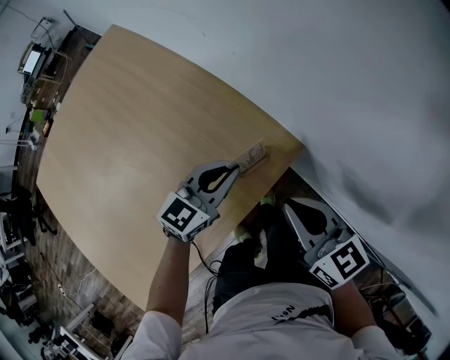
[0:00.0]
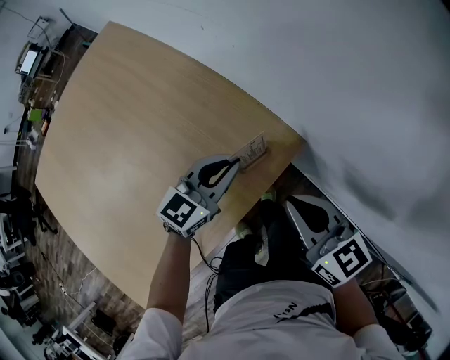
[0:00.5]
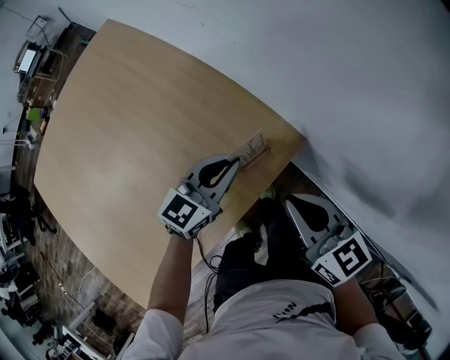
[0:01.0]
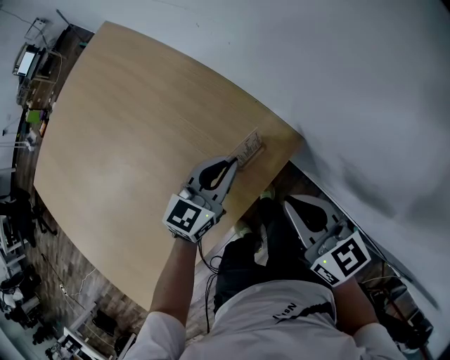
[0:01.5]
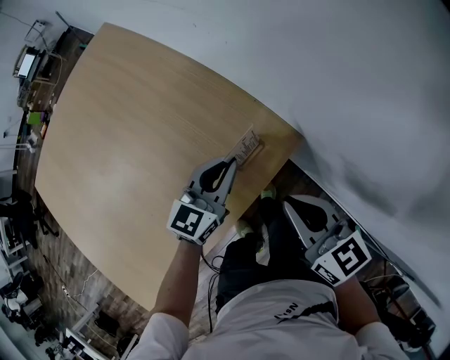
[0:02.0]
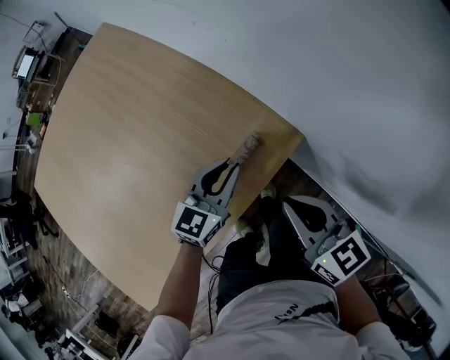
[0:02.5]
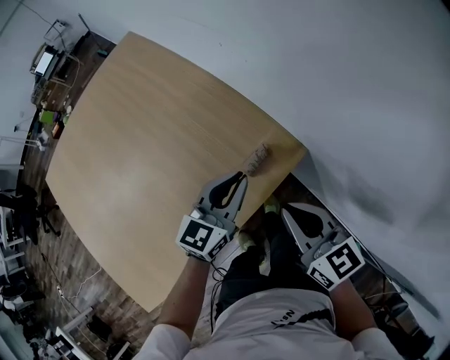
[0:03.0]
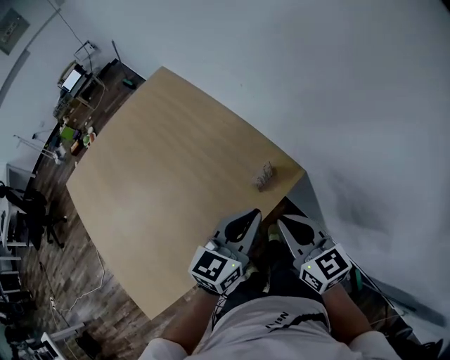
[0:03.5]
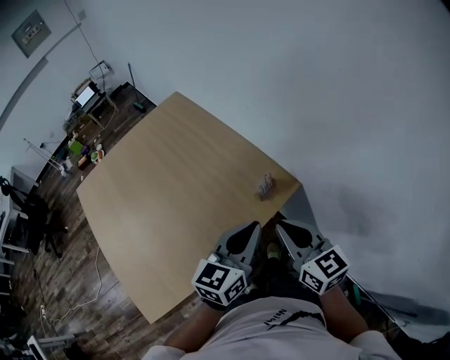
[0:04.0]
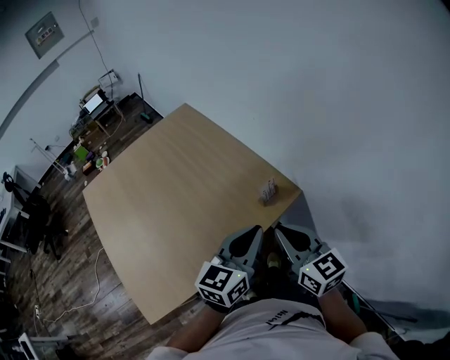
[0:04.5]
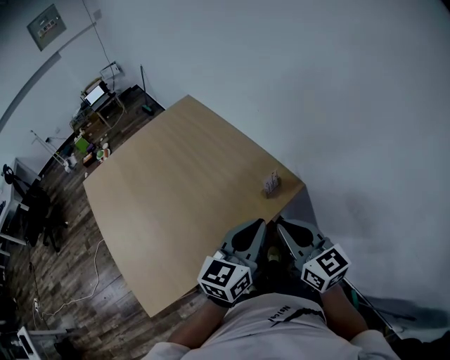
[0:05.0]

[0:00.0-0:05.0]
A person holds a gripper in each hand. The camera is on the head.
0:00.0 to 0:02.5: The grippers move only a little.
0:02.5 to 0:05.0: The left gripper is displaced upward and backward by approximately 35 cm; the right gripper heads upward, backward and to the left, covering some 25 cm.

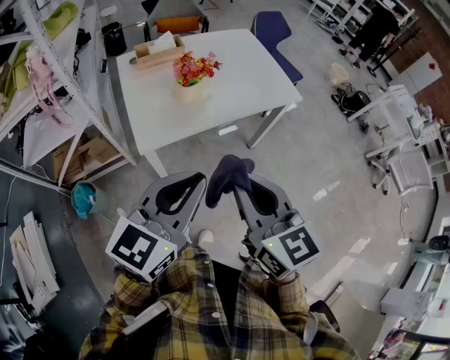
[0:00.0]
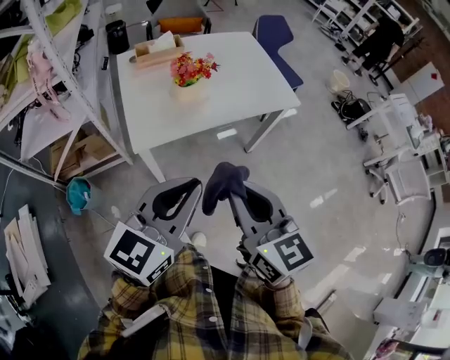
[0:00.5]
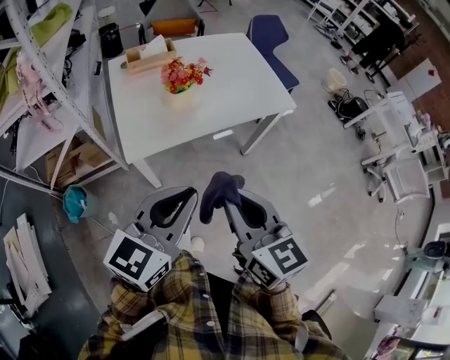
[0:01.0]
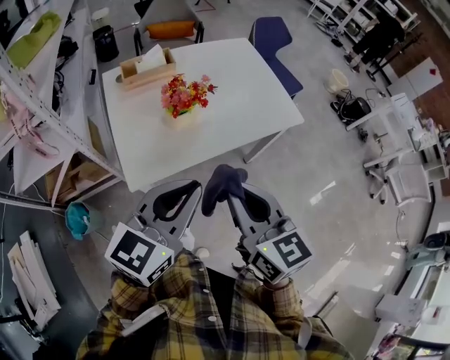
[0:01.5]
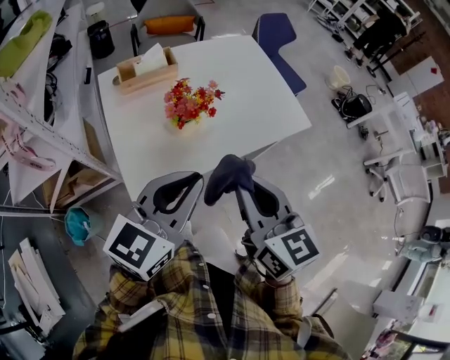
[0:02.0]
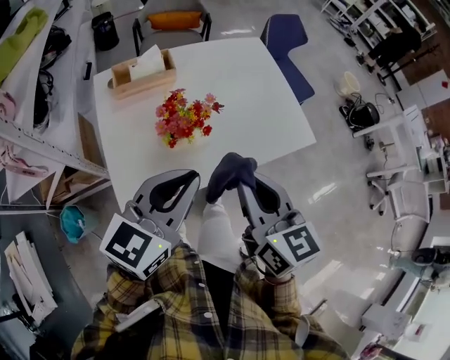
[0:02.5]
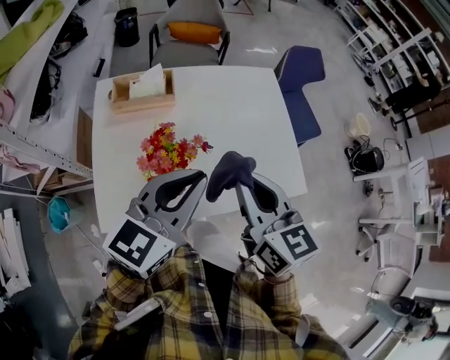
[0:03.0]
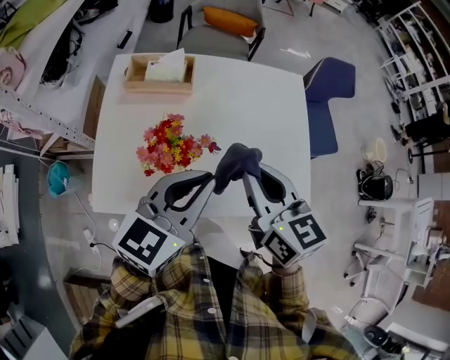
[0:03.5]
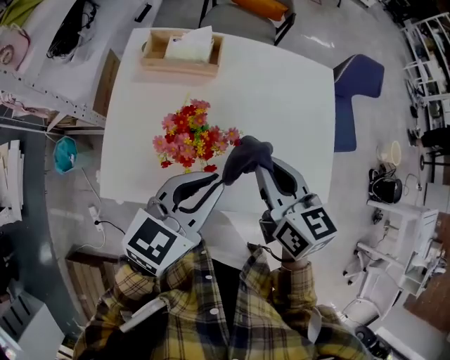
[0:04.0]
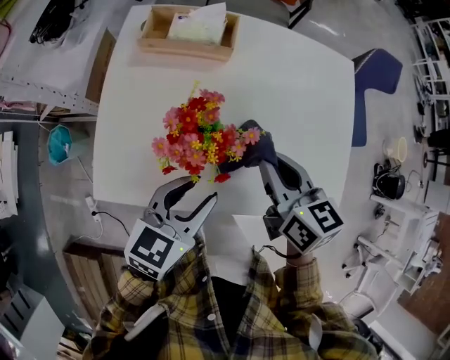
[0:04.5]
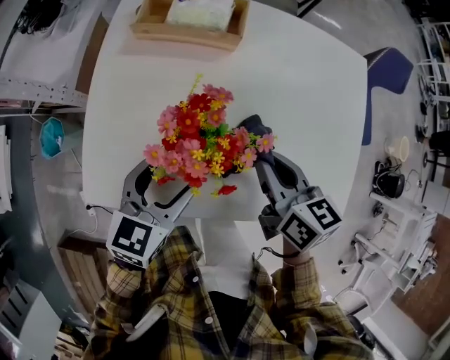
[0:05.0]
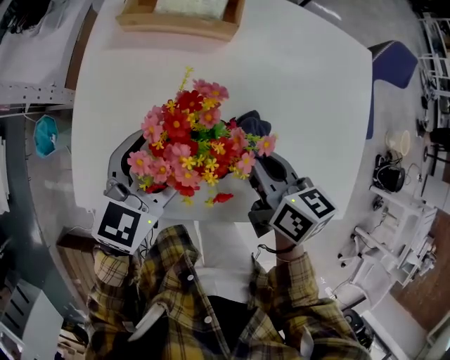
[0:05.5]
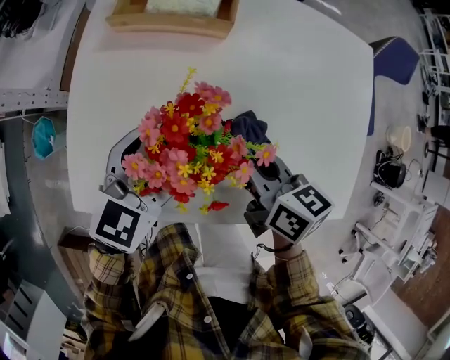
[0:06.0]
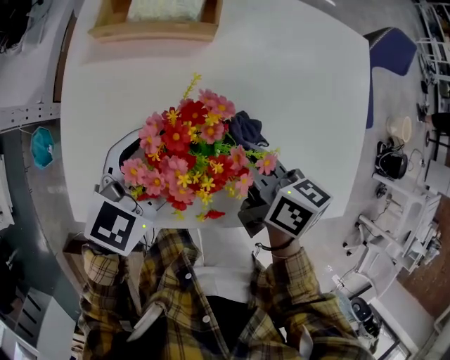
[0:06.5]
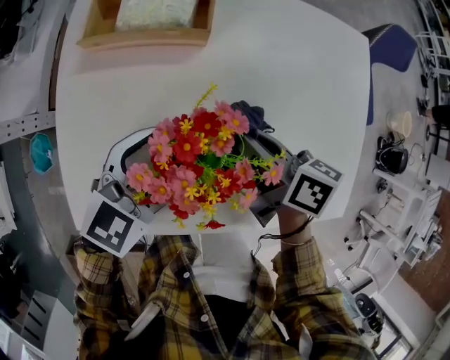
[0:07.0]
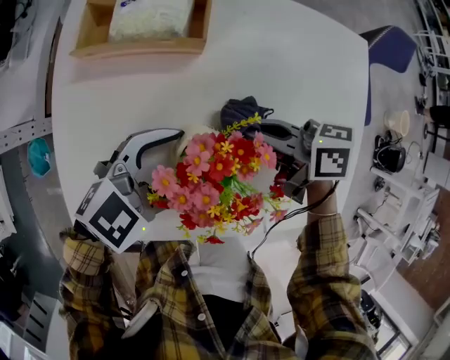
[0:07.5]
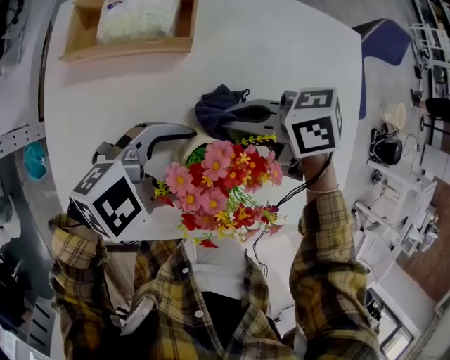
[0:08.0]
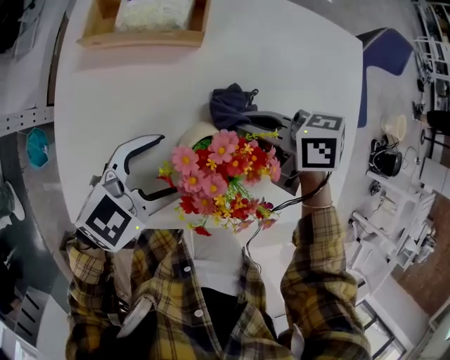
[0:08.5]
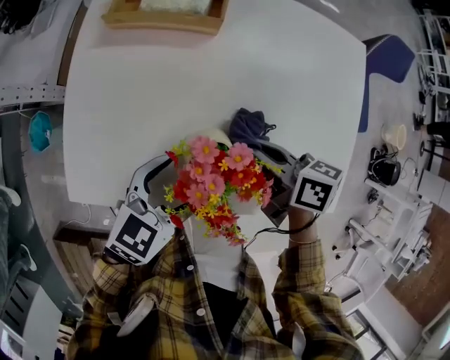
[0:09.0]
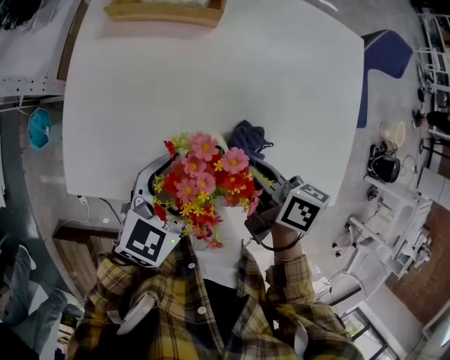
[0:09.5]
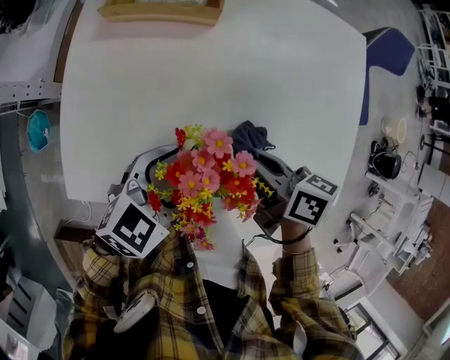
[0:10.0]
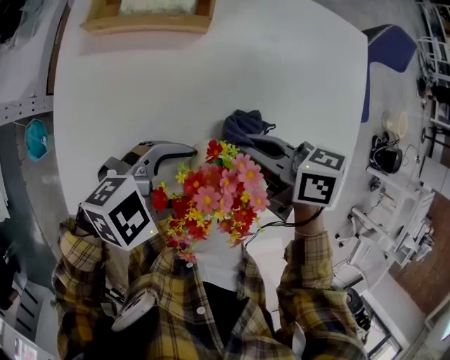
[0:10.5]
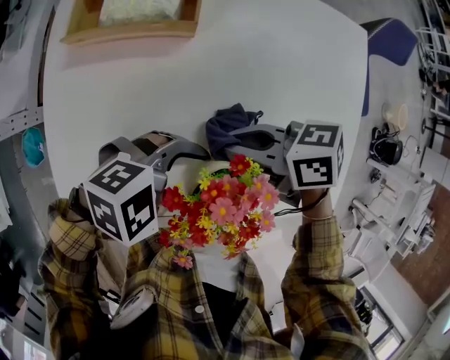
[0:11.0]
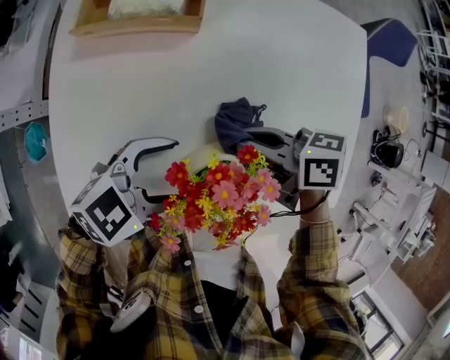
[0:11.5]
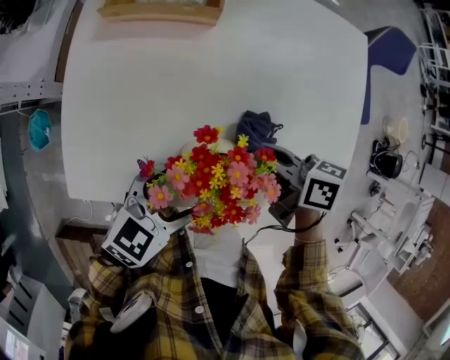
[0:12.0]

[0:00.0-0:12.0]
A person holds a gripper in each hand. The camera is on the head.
0:00.0 to 0:02.0: Both grippers travel together forward, approximately 20 cm.
0:02.0 to 0:04.0: The right gripper changes place by about 30 cm, and rotates approximately 30 degrees. The left gripper ends up approximately 25 cm from where it was, and turns by about 30 degrees.
0:04.0 to 0:06.0: The left gripper moves downward, to the left and forward, roughly 20 cm, and opens its fingers, while the right gripper shifts about 20 cm downward, and changes its angle by approximately 20 degrees.
0:06.0 to 0:08.0: The left gripper shifts by approximately 10 cm, and turns by some 50 degrees. The right gripper shifts by approximately 10 cm, and swivels approximately 40 degrees.
0:08.0 to 0:10.0: The left gripper moves approximately 10 cm, and turns by approximately 30 degrees, while the right gripper shifts by roughly 15 cm, and changes its angle by roughly 30 degrees.

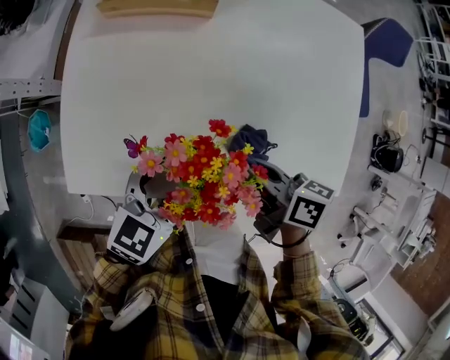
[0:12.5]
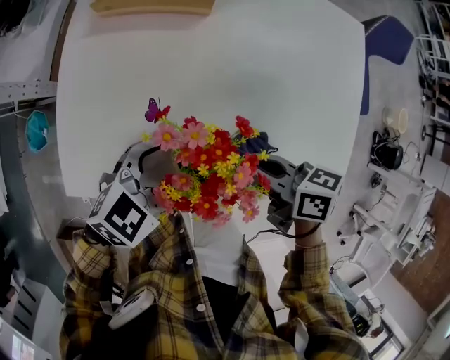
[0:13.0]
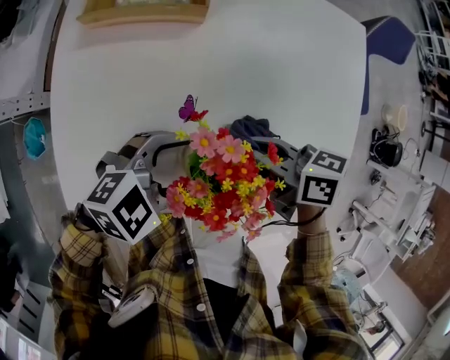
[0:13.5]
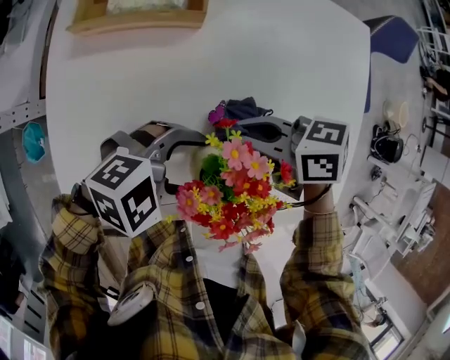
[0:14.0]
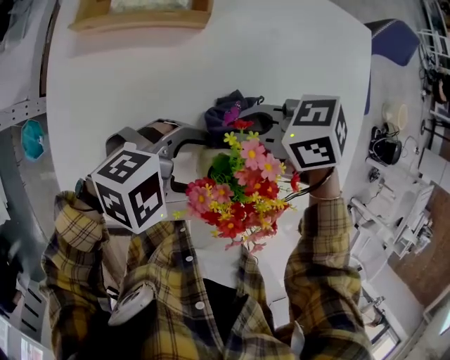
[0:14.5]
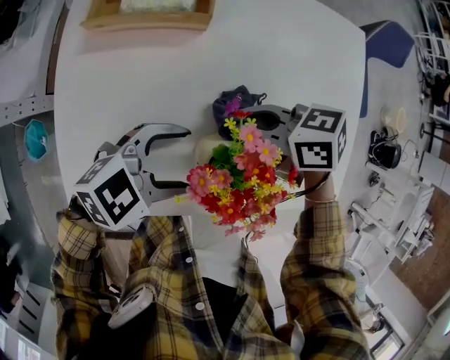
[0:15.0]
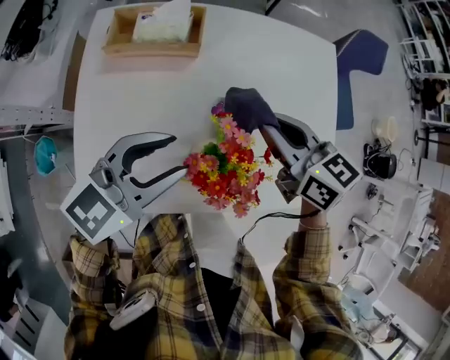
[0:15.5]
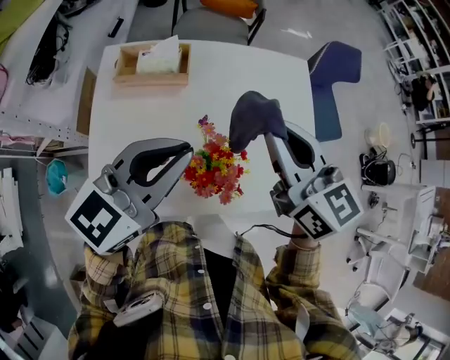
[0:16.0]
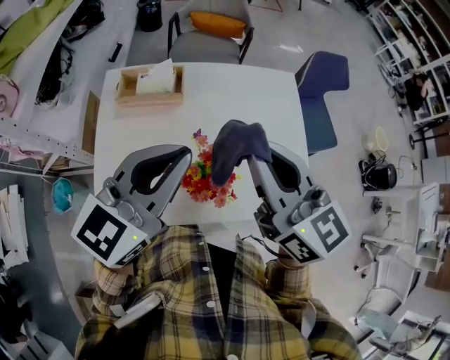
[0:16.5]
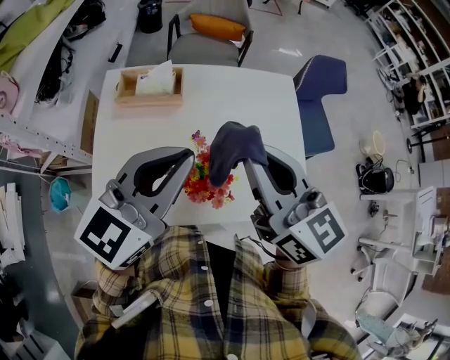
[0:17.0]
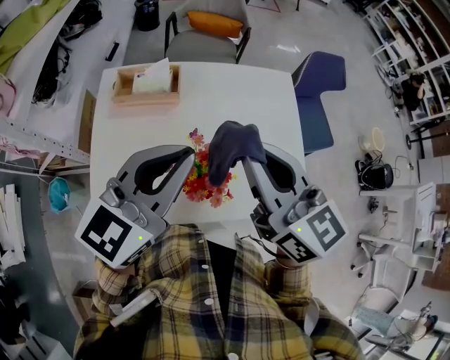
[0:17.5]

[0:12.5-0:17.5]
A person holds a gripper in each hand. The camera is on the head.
0:12.5 to 0:15.0: The left gripper shifts by approximately 5 cm, and rotates some 40 degrees. The right gripper changes place by about 10 cm, and turns by roughly 40 degrees.
0:15.0 to 0:17.5: The grippers both shift upward by some 30 cm. The left gripper swivels roughly 50 degrees, and closes. Meanwhile the right gripper changes its angle by roughly 60 degrees.

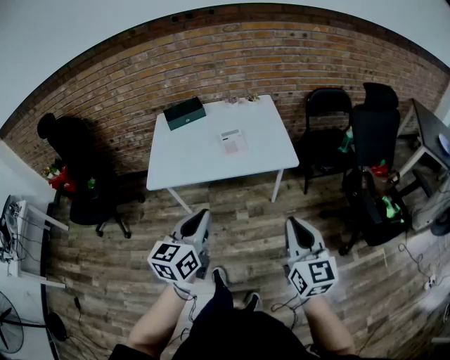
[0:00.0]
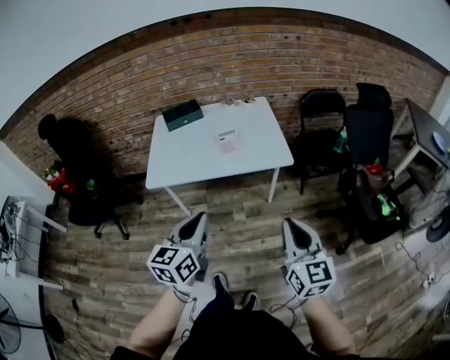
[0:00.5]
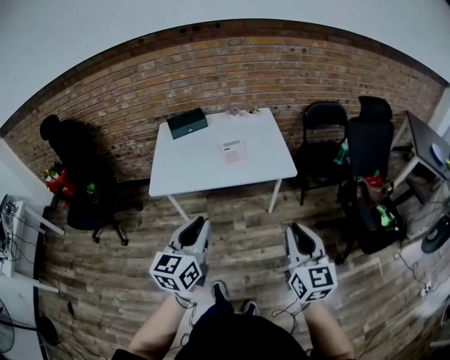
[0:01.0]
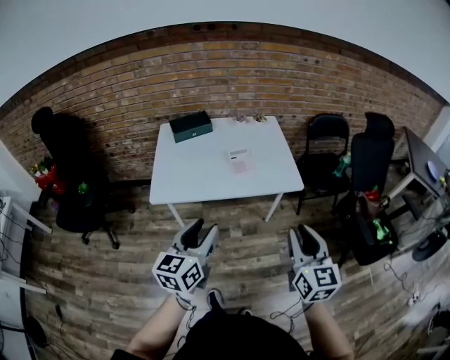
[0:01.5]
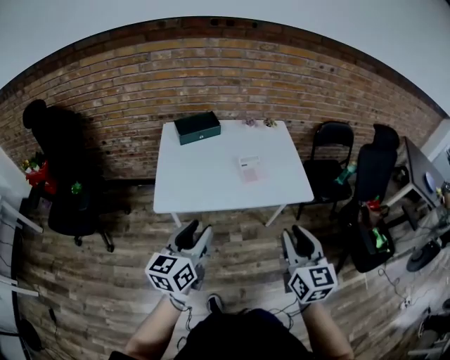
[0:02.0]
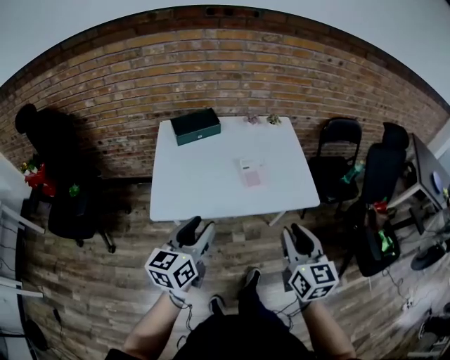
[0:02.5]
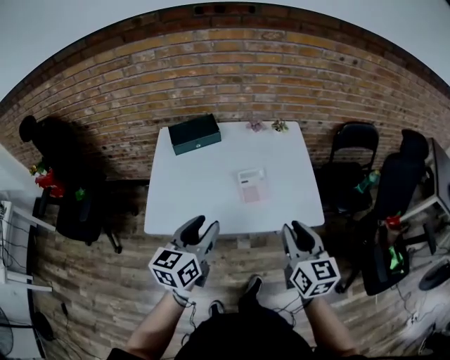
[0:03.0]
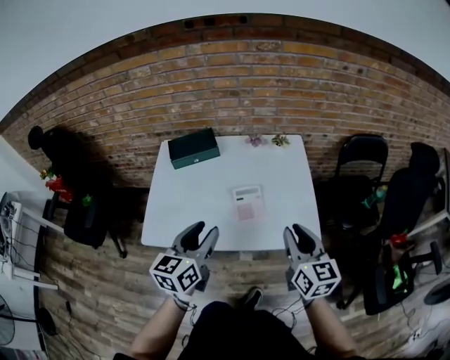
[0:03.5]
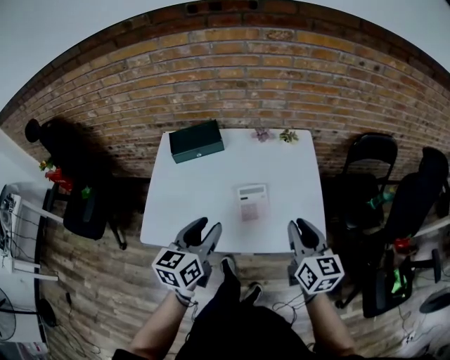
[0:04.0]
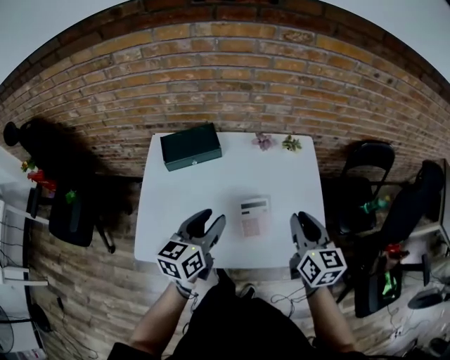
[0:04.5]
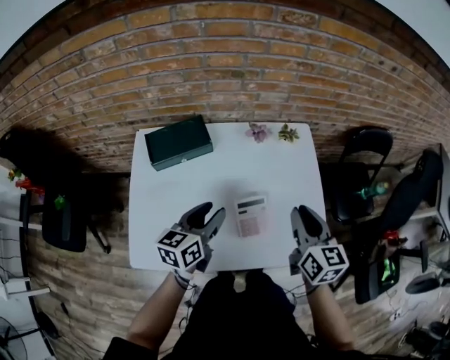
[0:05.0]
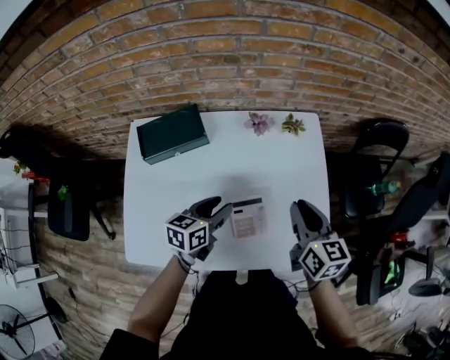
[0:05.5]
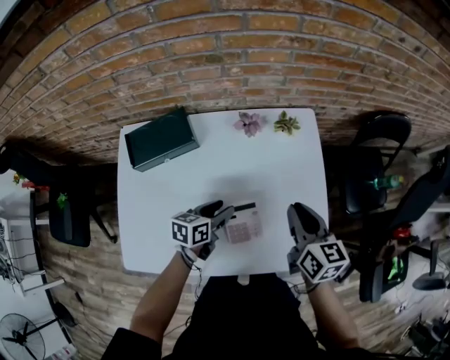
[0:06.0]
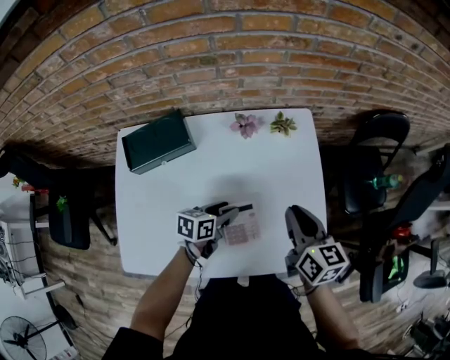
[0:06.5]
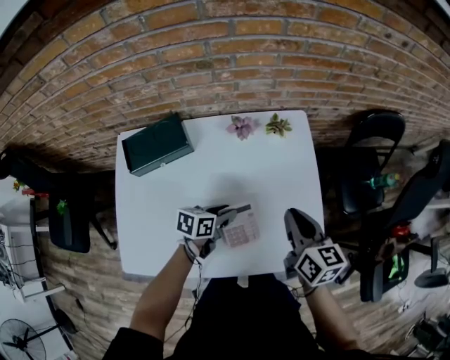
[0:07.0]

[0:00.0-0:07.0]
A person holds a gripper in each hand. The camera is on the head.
0:00.0 to 0:02.0: Both grippers move to the left and forward, some 20 cm. The right gripper opens up. The left gripper opens its fingers.
0:02.0 to 0:03.5: The two grippers go about 30 cm forward and to the right.
0:03.5 to 0:05.0: The left gripper moves forward and downward, about 25 cm. Meanwhile the right gripper goes some 20 cm forward.
0:05.0 to 0:07.0: The right gripper goes roughly 10 cm downward and forward. Meanwhile the left gripper goes roughly 20 cm downward, to the right and forward, and changes its angle by roughly 30 degrees.